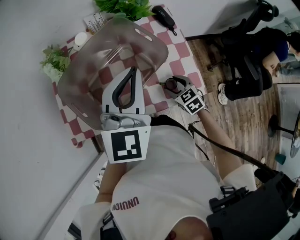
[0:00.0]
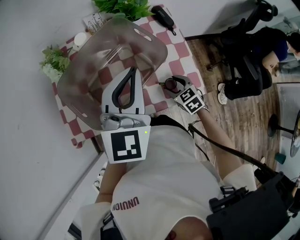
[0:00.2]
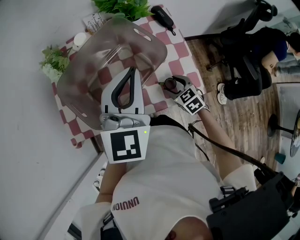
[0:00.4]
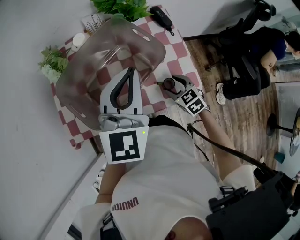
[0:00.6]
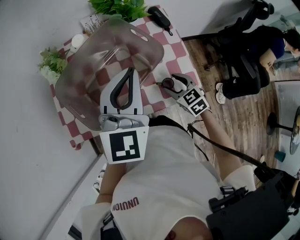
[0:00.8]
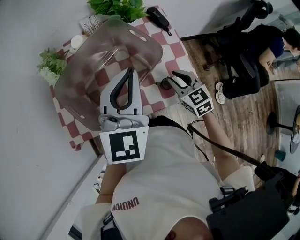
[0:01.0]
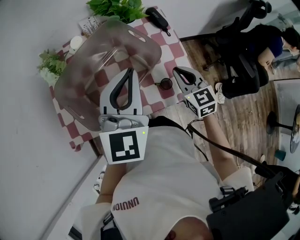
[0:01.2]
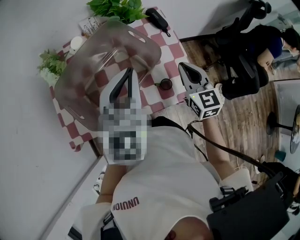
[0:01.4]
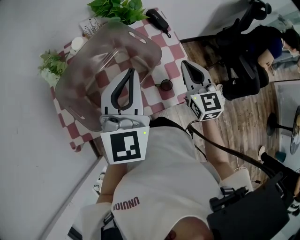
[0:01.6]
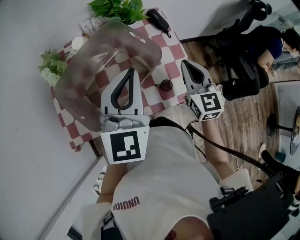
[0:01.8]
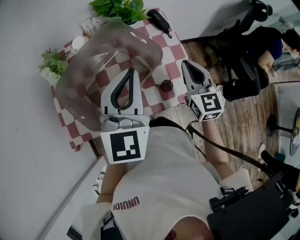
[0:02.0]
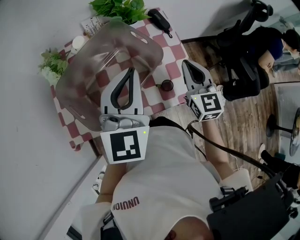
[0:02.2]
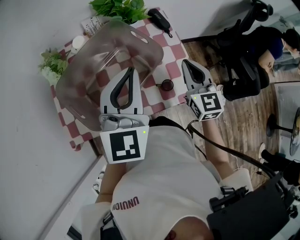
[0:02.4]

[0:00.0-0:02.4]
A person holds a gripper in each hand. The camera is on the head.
0:00.0 to 0:01.2: The right gripper travels upward by about 15 cm, swivels about 20 degrees, and closes.
0:01.2 to 0:02.4: The right gripper is displaced upward by approximately 5 cm.

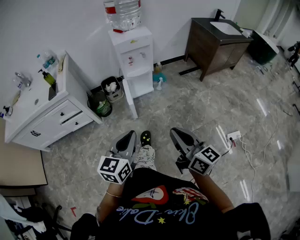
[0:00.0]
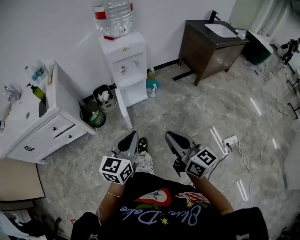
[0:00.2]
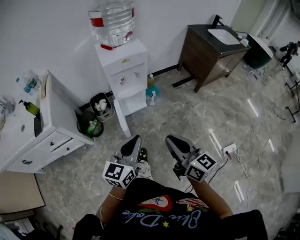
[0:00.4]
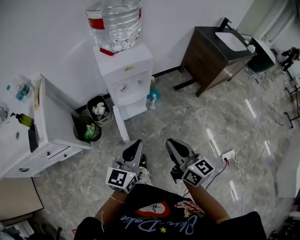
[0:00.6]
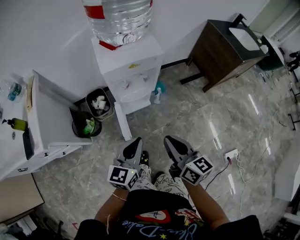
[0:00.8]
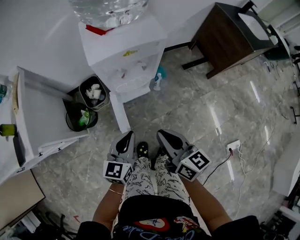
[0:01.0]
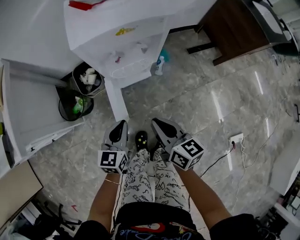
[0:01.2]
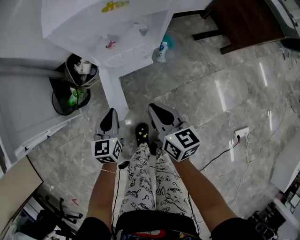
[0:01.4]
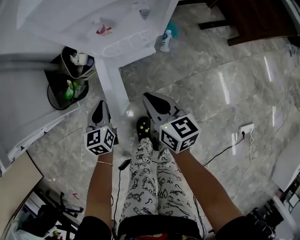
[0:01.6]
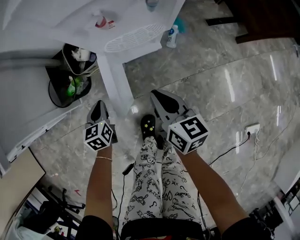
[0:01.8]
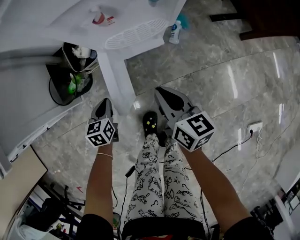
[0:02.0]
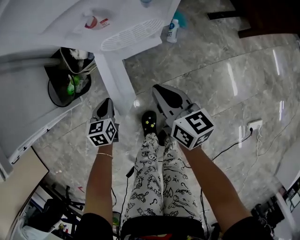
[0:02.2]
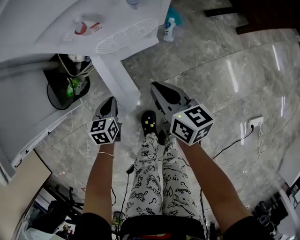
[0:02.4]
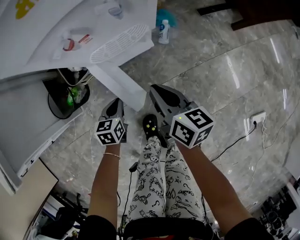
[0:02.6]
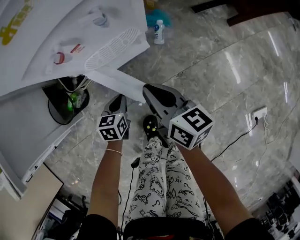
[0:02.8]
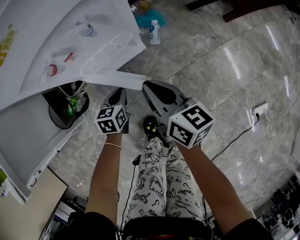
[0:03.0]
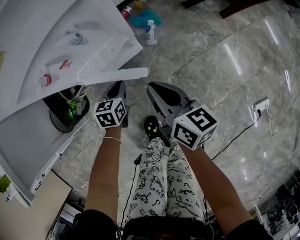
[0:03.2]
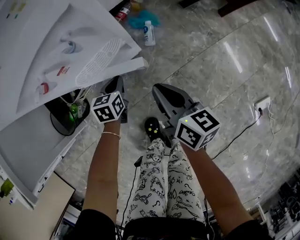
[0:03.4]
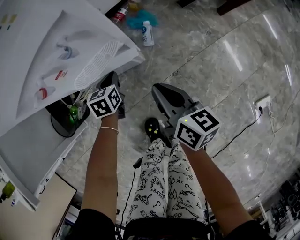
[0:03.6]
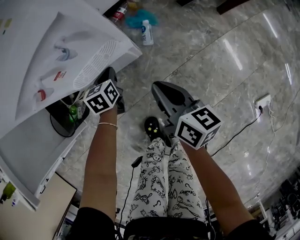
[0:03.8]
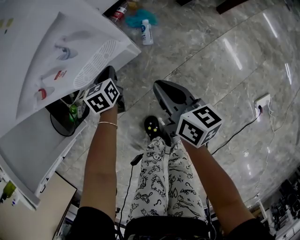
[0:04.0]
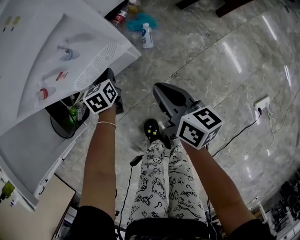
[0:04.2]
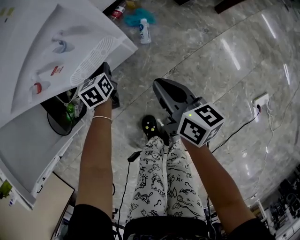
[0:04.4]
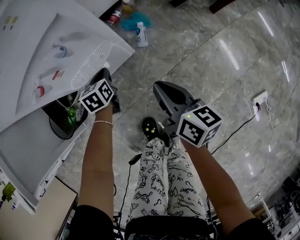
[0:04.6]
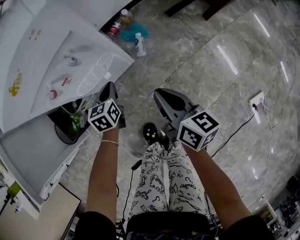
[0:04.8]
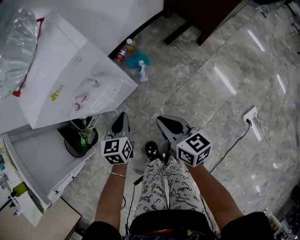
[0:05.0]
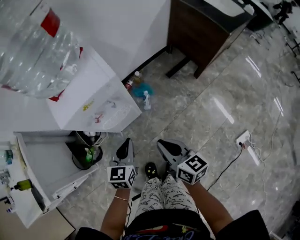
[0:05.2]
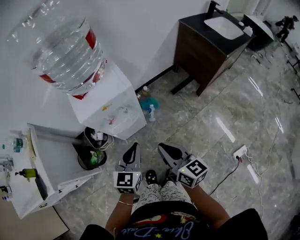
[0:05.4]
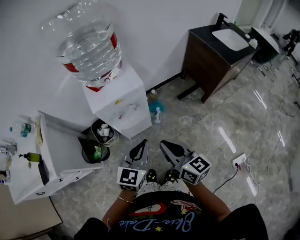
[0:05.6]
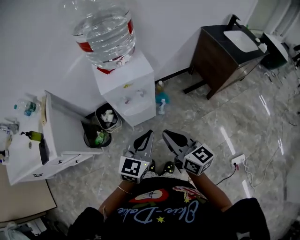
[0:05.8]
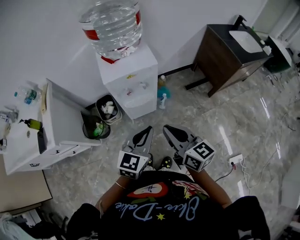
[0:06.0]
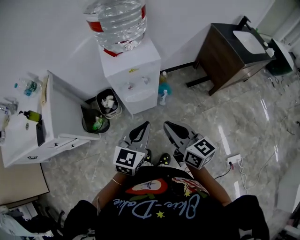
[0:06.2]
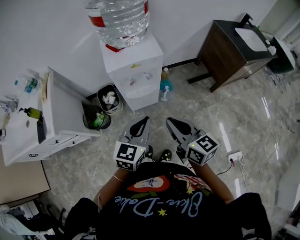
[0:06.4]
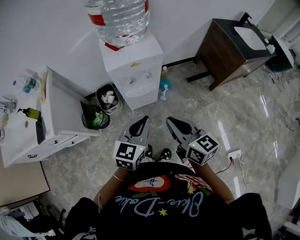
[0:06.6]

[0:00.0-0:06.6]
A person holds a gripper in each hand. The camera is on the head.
0:00.0 to 0:01.6: The pair of grippers is taken forward, some 50 cm. Both grippers travel together downward, roughly 40 cm. The right gripper turns by some 30 degrees. The left gripper changes its angle by some 30 degrees.
0:01.6 to 0:03.2: The left gripper is displaced to the right, downward and forward by some 20 cm, and swivels roughly 30 degrees; the right gripper heads to the right, covering some 10 cm.
0:03.2 to 0:05.0: The right gripper shifts about 15 cm upward, to the right and backward. The left gripper moves upward, approximately 20 cm.
0:05.0 to 0:06.6: The left gripper shifts about 35 cm upward and backward, while the right gripper heads upward, covering approximately 30 cm, and turns by about 20 degrees.

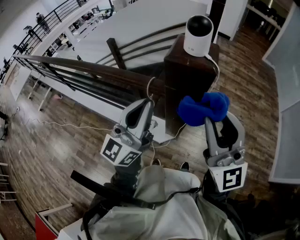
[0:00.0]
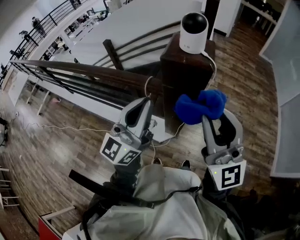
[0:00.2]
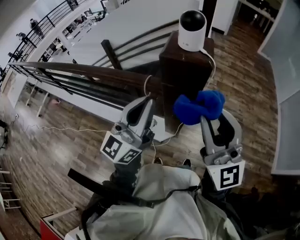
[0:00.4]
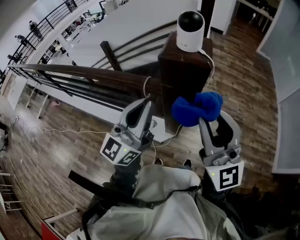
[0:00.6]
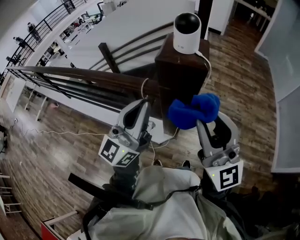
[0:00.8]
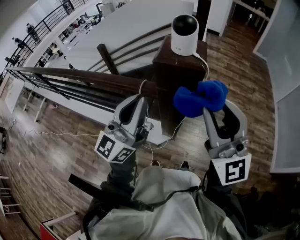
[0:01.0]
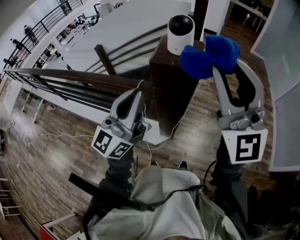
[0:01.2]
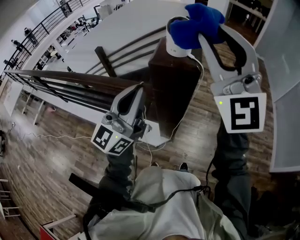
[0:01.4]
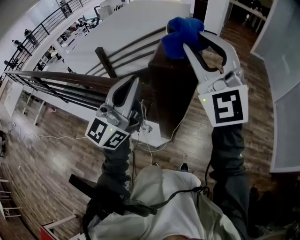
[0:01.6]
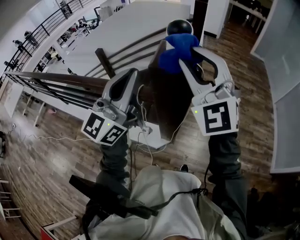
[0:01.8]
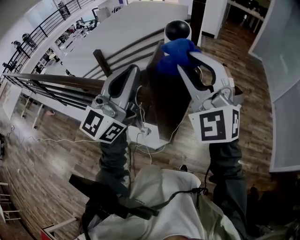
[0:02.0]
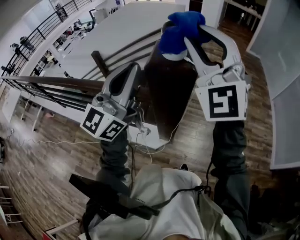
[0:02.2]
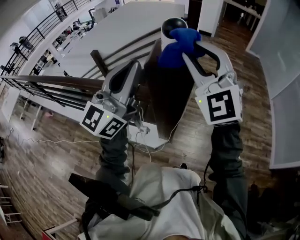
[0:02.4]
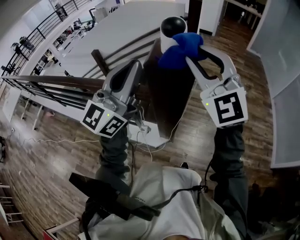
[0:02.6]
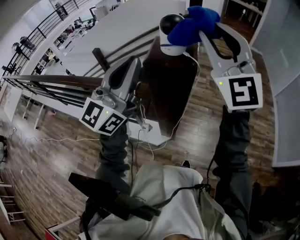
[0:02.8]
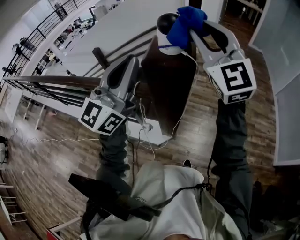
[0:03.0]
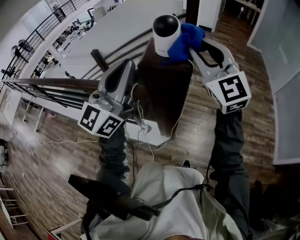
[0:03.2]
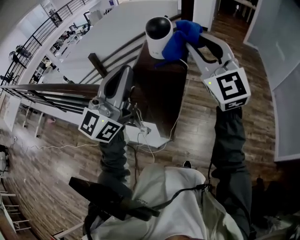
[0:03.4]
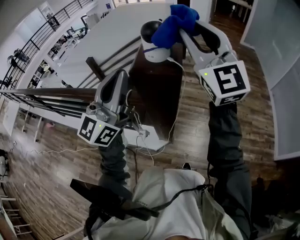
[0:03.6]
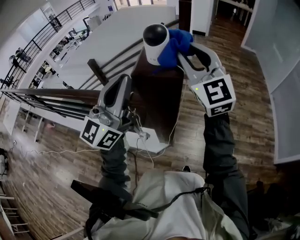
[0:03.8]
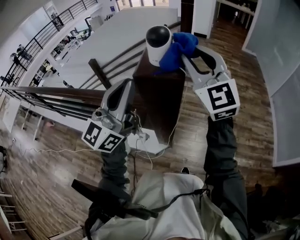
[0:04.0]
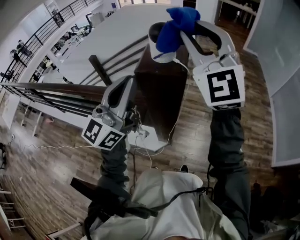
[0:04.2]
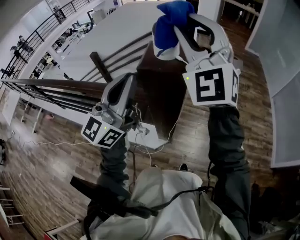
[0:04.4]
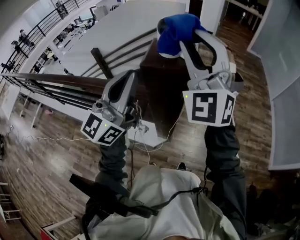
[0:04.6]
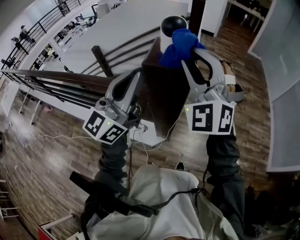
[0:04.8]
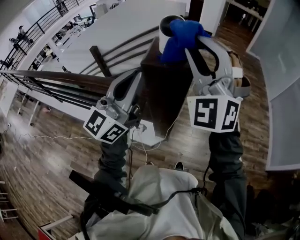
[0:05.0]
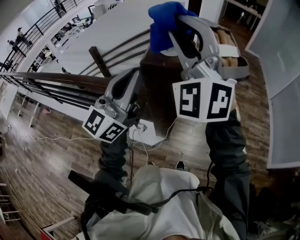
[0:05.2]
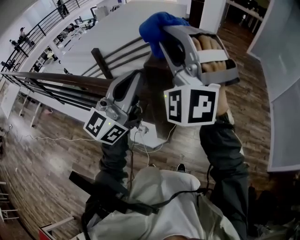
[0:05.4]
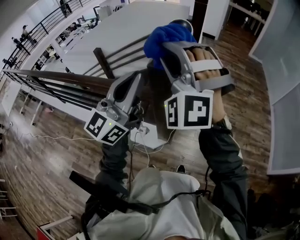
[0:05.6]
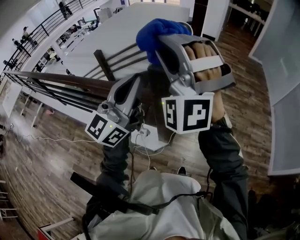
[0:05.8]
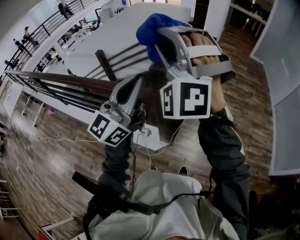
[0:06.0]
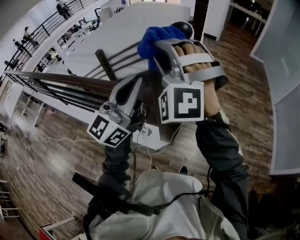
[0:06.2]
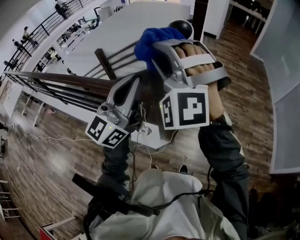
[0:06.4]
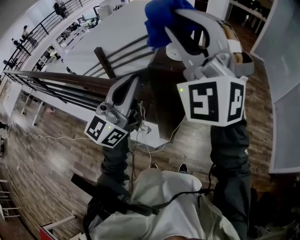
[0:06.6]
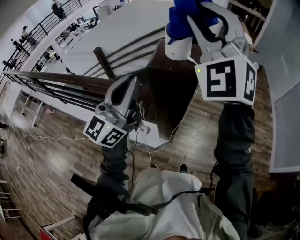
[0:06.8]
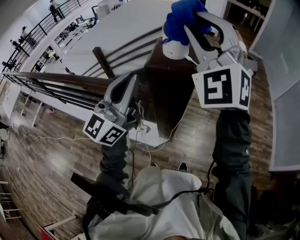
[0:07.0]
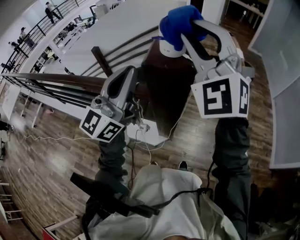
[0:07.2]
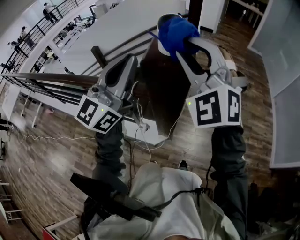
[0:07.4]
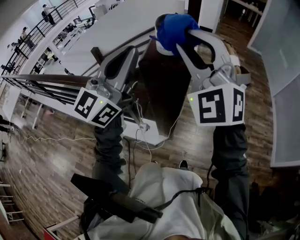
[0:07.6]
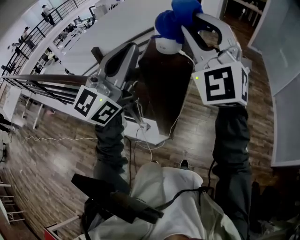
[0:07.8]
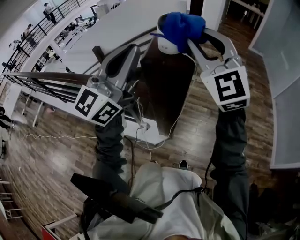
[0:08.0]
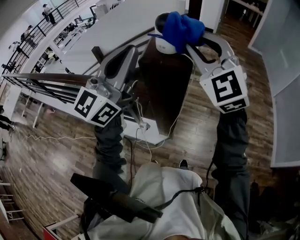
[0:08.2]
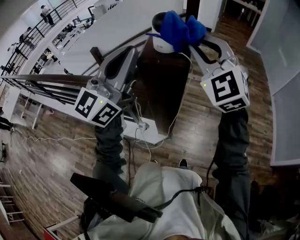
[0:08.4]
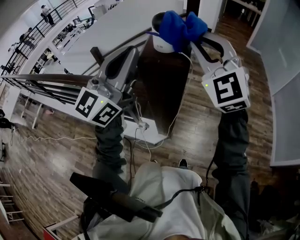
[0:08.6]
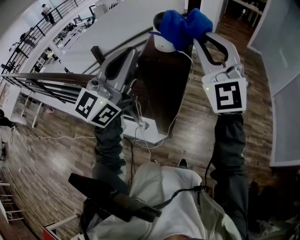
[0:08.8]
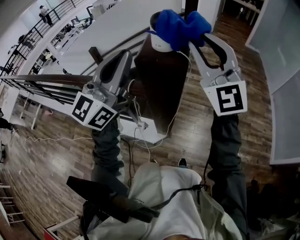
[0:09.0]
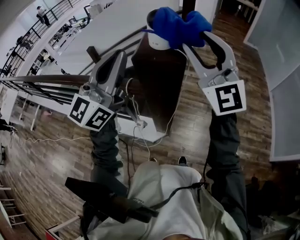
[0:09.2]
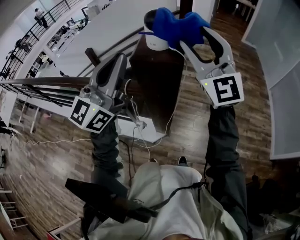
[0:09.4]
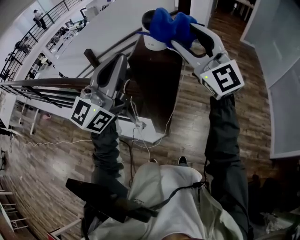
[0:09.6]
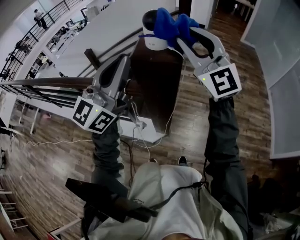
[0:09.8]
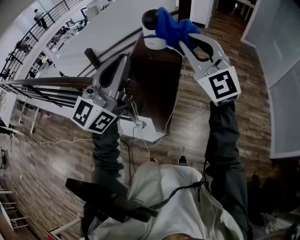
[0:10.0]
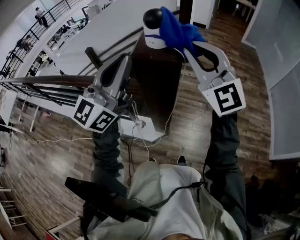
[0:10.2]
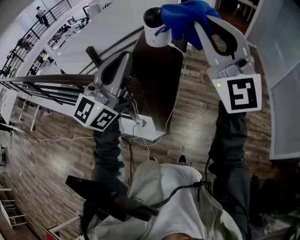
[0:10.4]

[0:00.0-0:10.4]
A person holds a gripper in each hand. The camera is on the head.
0:00.0 to 0:01.4: The right gripper goes about 20 cm upward and forward, and changes its angle by some 30 degrees. The left gripper shifts by roughly 5 cm.
0:01.4 to 0:03.0: The right gripper is displaced forward and downward by approximately 10 cm, while the left gripper shifts about 10 cm upward and forward.
0:03.0 to 0:04.4: The right gripper moves up and down over approximately 10 cm, changing direction 3 times, and rotates about 20 degrees.
0:04.4 to 0:06.0: The right gripper is displaced to the left by roughly 10 cm, and rotates roughly 30 degrees.
0:06.0 to 0:07.4: The right gripper moves up and down over about 10 cm, changing direction 2 times, and rotates approximately 20 degrees.
0:07.4 to 0:09.0: The right gripper shifts some 5 cm to the right, and rotates some 30 degrees.
0:09.0 to 0:10.4: The right gripper travels upward by roughly 5 cm, and opens, then closes once more.

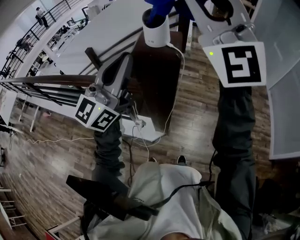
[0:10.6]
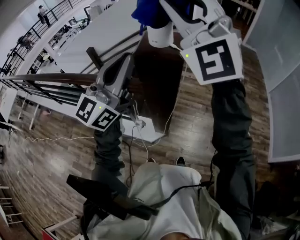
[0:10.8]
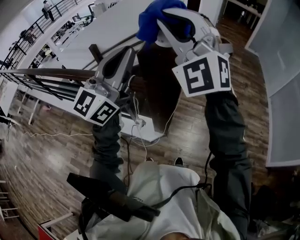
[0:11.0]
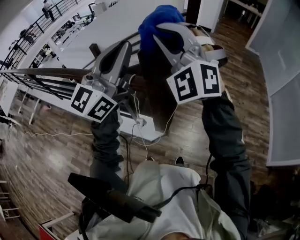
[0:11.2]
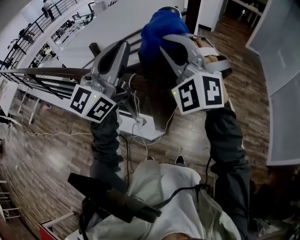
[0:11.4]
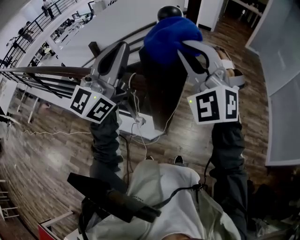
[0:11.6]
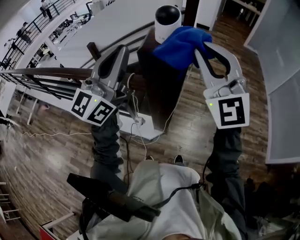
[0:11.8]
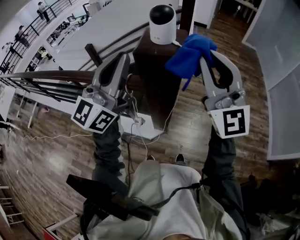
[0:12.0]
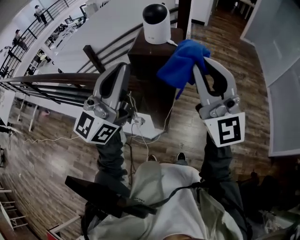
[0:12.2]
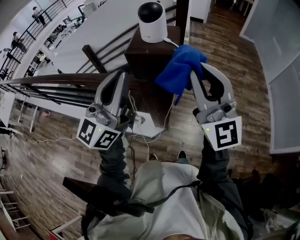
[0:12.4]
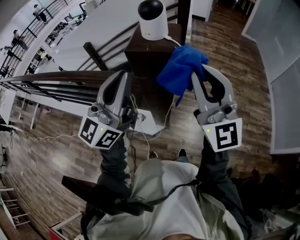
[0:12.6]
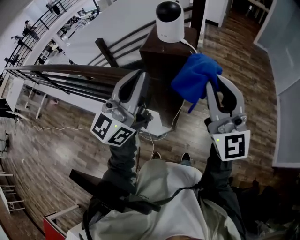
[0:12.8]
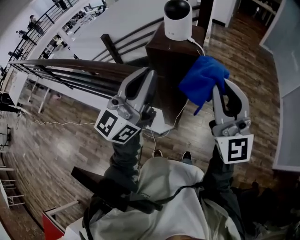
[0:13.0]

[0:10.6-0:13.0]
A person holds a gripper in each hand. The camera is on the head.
0:10.6 to 0:11.8: The right gripper moves downward, approximately 15 cm.
0:11.8 to 0:13.0: The left gripper travels to the right by some 5 cm, while the right gripper goes approximately 10 cm backward and downward, and turns by roughly 20 degrees.

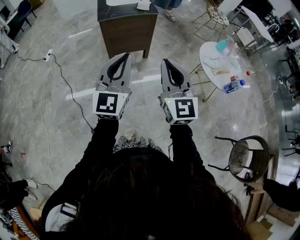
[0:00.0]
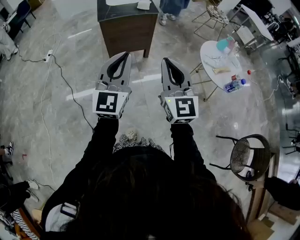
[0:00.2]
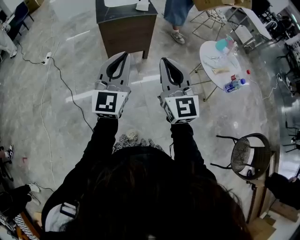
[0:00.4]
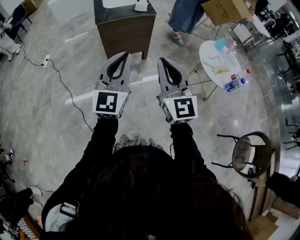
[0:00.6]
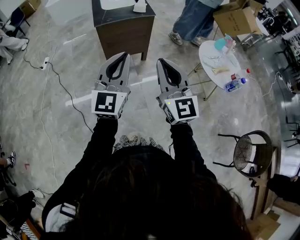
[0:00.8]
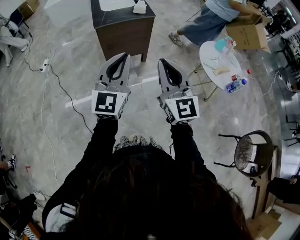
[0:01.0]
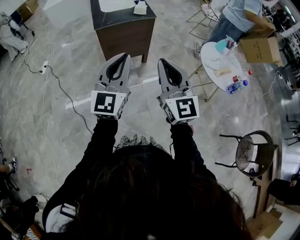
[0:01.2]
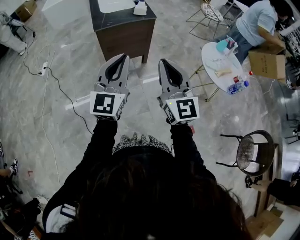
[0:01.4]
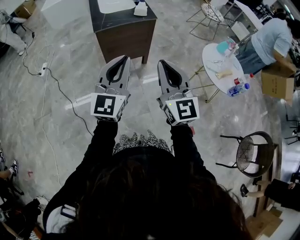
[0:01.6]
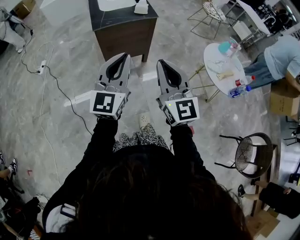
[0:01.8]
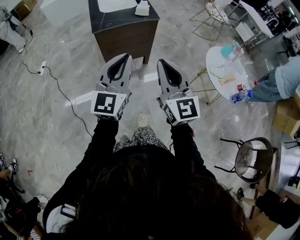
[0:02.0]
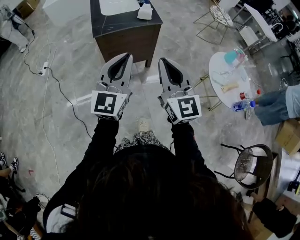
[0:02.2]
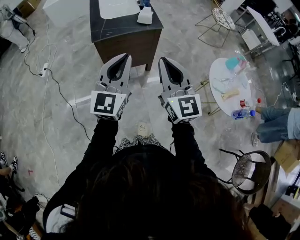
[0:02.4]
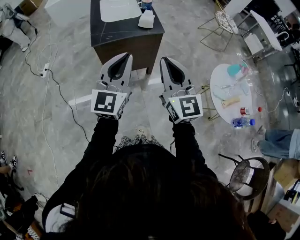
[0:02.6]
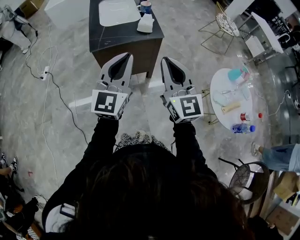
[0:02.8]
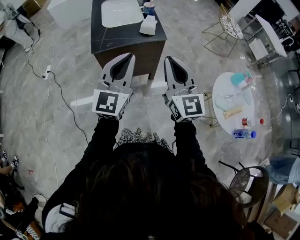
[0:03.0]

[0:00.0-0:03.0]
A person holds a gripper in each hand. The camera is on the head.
0:00.0 to 0:01.6: The grippers both shift forward and to the left by about 10 cm.
0:01.6 to 0:03.0: Both grippers move forward, some 25 cm.
